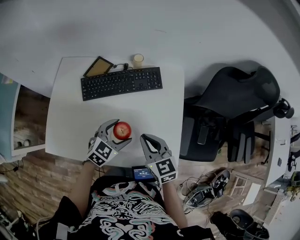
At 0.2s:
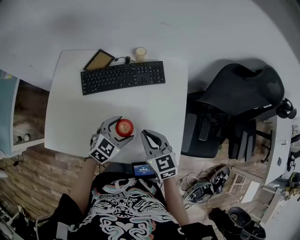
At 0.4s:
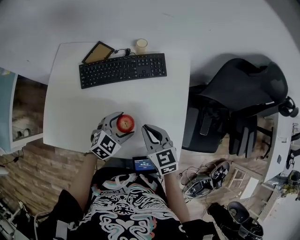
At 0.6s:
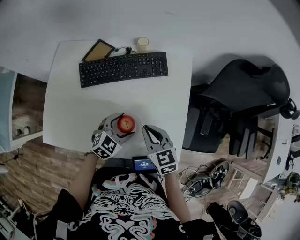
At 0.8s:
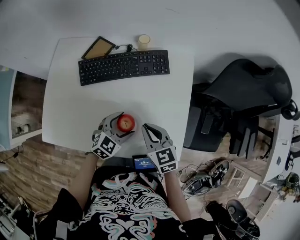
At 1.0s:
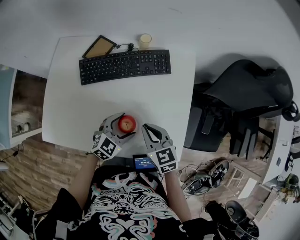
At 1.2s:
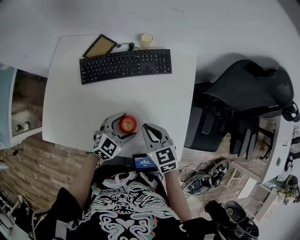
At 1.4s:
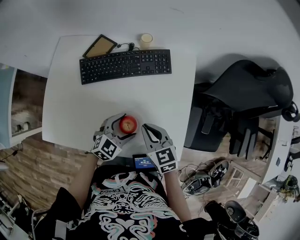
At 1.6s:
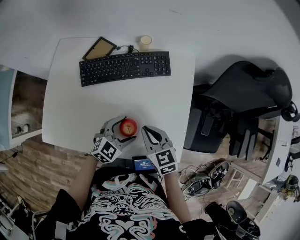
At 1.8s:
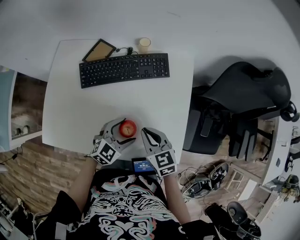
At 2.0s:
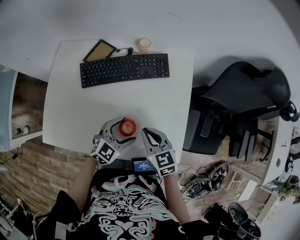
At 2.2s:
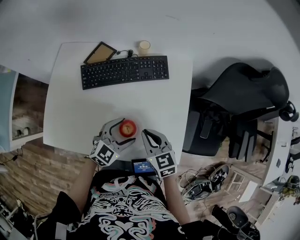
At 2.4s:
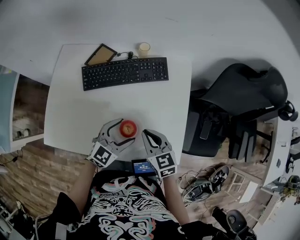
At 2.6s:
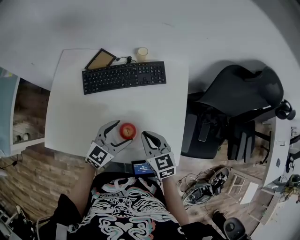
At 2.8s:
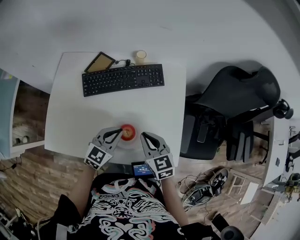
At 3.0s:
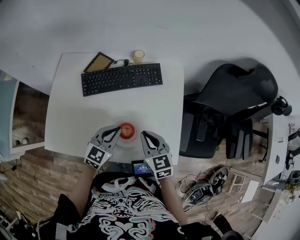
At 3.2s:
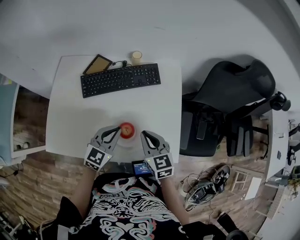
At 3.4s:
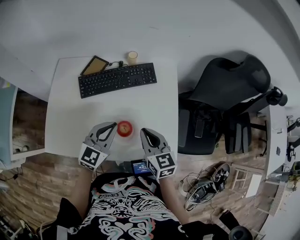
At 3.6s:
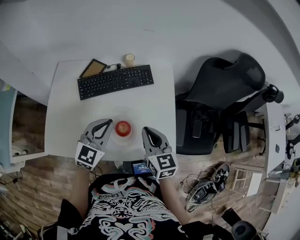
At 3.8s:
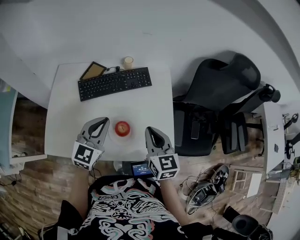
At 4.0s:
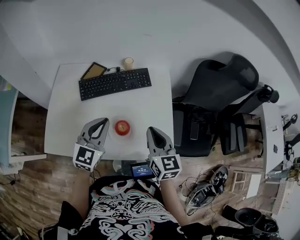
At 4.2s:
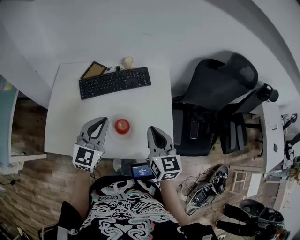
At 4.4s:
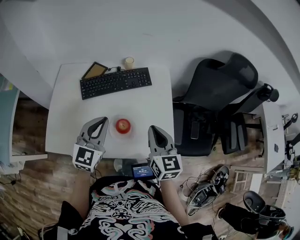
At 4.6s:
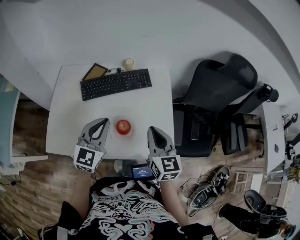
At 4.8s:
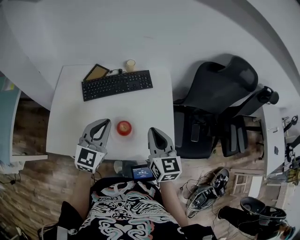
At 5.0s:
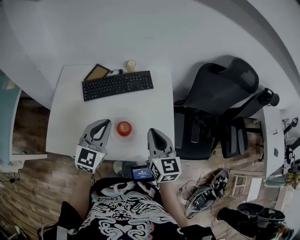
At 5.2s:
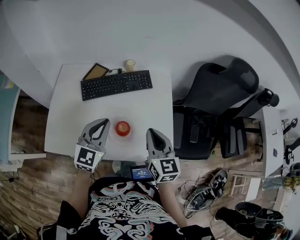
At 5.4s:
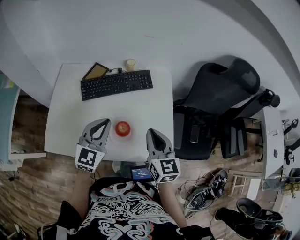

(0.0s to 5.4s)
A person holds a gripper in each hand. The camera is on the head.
0.0s - 1.4s: Both grippers travel together downward, roughly 5 cm.
1.4s - 2.8s: The left gripper goes about 5 cm upward, and closes up.
2.8s - 4.0s: The right gripper heads upward and to the right, covering some 10 cm, and rotates about 20 degrees; the left gripper goes roughly 15 cm upward.
4.0s - 5.4s: The grippers move only a little.

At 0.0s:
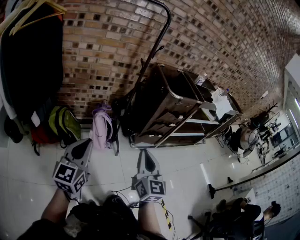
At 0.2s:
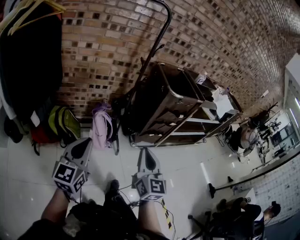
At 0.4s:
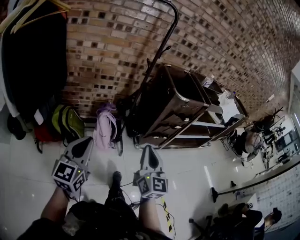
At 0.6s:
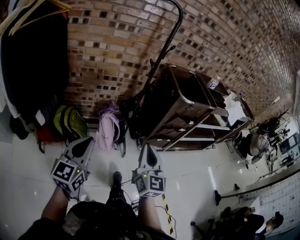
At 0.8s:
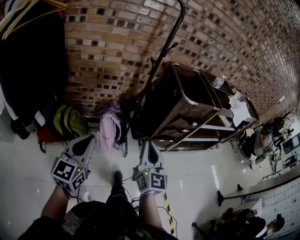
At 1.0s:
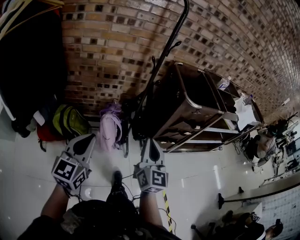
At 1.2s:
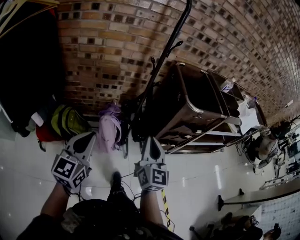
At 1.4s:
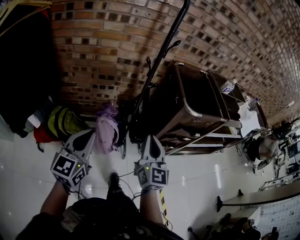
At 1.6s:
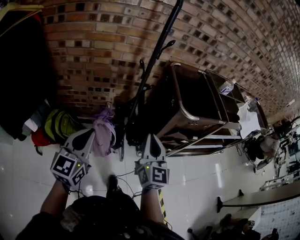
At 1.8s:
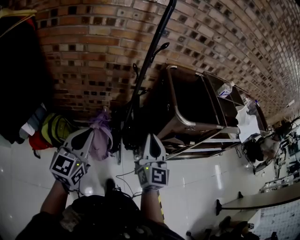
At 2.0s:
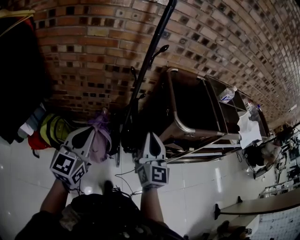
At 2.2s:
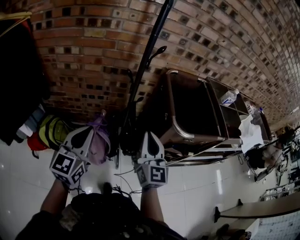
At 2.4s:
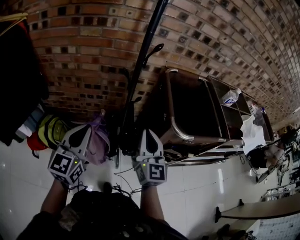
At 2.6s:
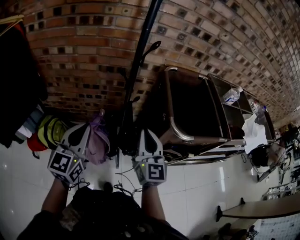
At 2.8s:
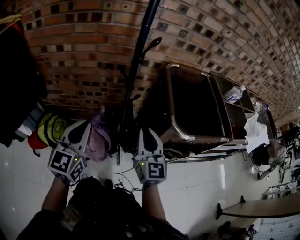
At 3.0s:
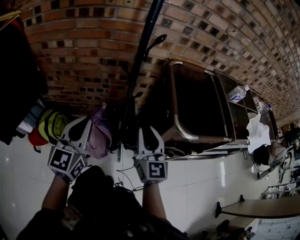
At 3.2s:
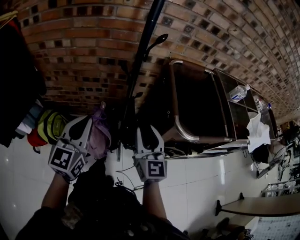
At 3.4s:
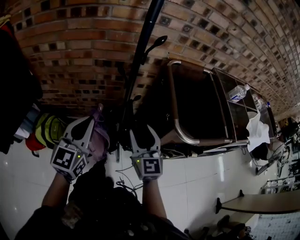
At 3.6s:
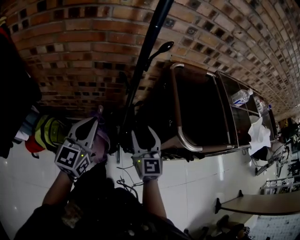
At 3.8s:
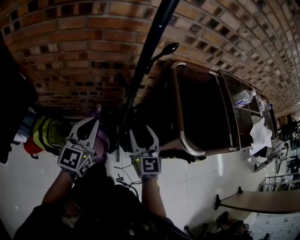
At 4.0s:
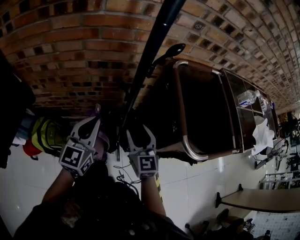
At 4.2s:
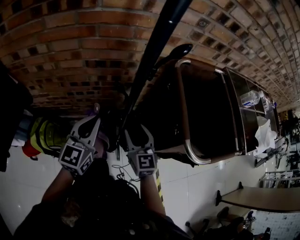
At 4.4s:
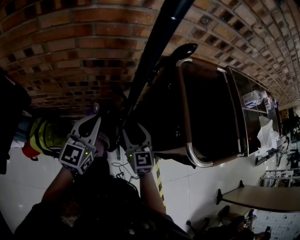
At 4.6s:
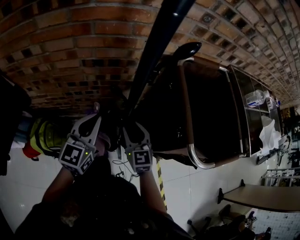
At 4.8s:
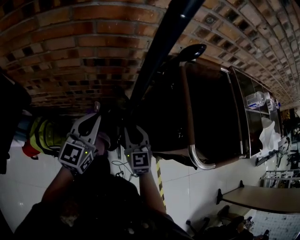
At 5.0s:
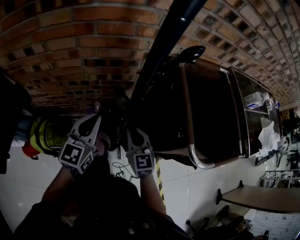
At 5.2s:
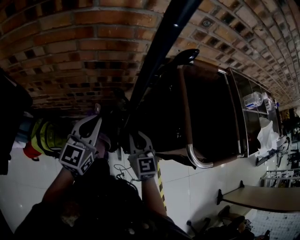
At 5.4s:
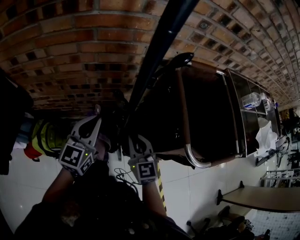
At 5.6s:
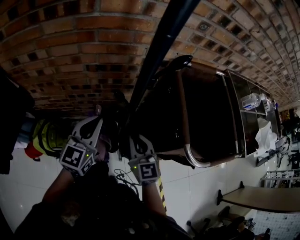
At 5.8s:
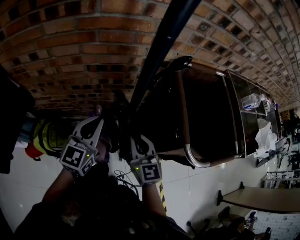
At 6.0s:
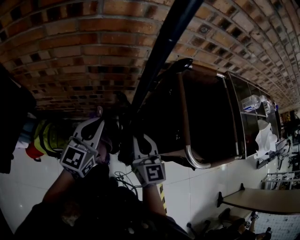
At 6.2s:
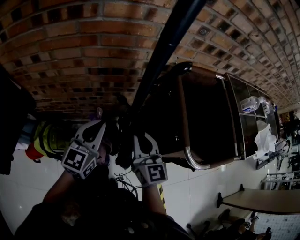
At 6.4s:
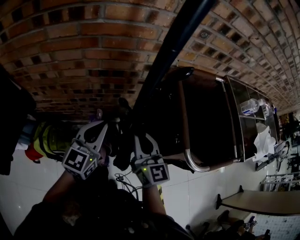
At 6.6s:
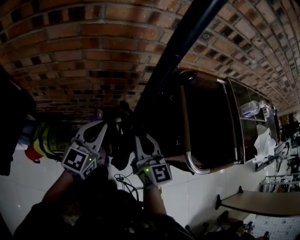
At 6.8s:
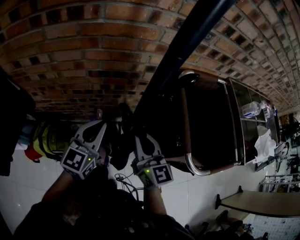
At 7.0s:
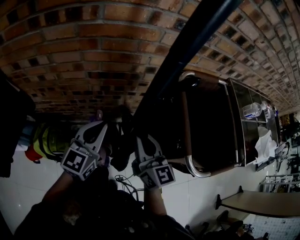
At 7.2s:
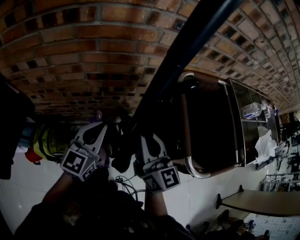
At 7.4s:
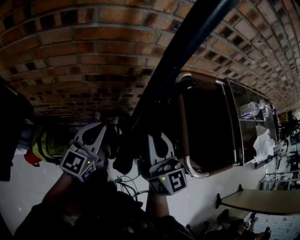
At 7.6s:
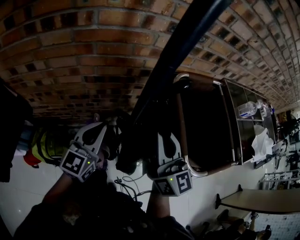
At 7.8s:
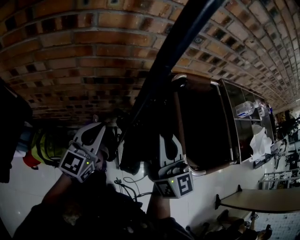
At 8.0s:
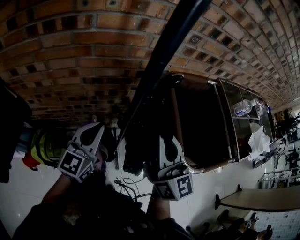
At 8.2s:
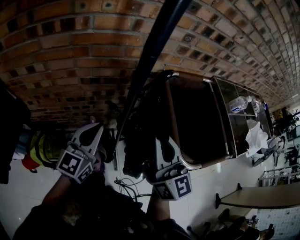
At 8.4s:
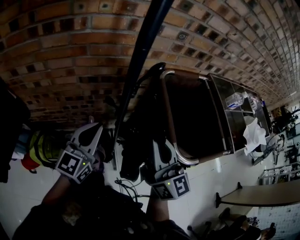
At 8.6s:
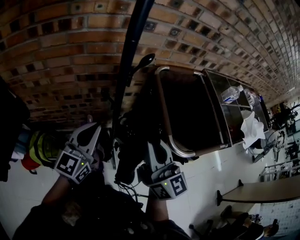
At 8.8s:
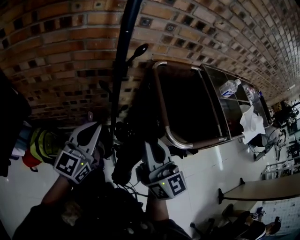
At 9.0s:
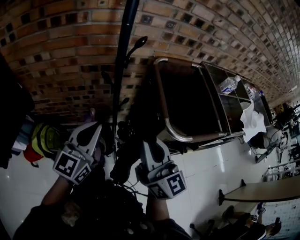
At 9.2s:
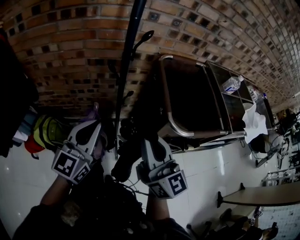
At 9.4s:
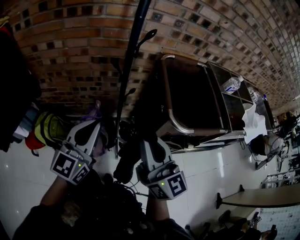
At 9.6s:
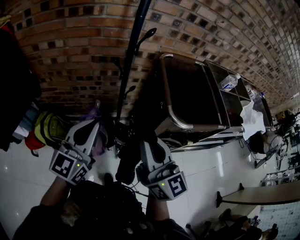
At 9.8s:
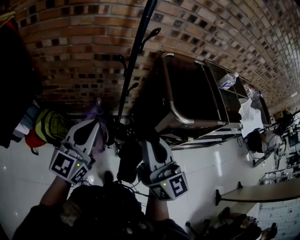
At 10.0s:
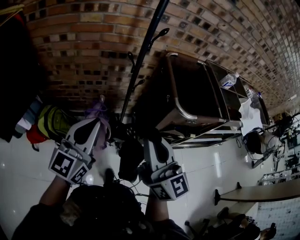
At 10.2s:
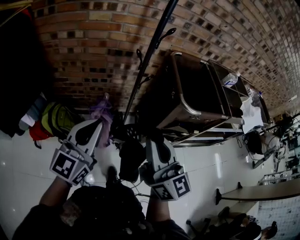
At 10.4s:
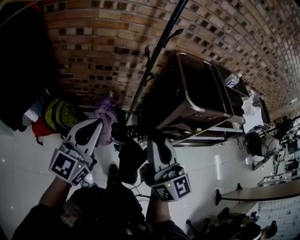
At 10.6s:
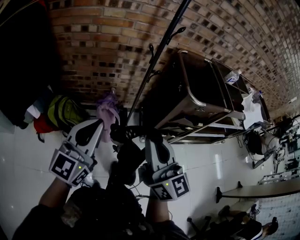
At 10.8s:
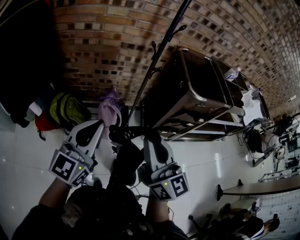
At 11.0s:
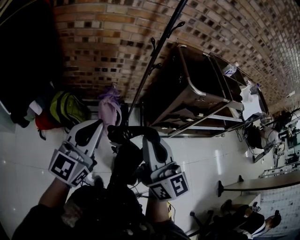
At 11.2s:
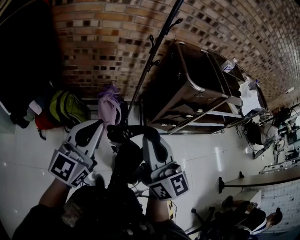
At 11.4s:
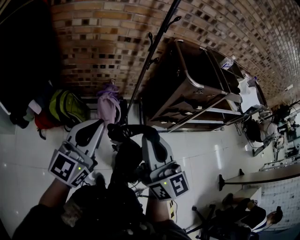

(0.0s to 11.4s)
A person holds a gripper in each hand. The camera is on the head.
0.0s - 1.4s: Both grippers travel together forward, approximately 30 cm.
1.4s - 2.8s: The right gripper shifts about 20 cm forward. Meanwhile the left gripper travels forward and to the right by some 20 cm.
2.8s - 4.2s: The grippers both shift forward and downward by about 20 cm. The right gripper opens up.
4.2s - 5.6s: The right gripper closes.
5.6s - 7.2s: The right gripper travels upward by some 10 cm, and turns by roughly 20 degrees.
7.2s - 8.6s: The left gripper travels backward and upward by roughly 10 cm; the right gripper goes some 15 cm backward, upward and to the right.
8.6s - 10.0s: Both grippers move backward, roughly 20 cm.
10.0s - 11.4s: Both grippers travel together backward and to the left, about 20 cm.

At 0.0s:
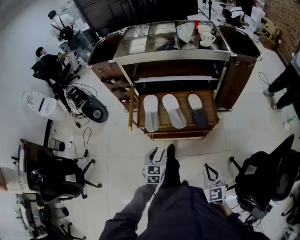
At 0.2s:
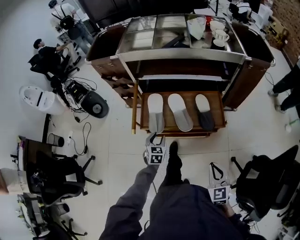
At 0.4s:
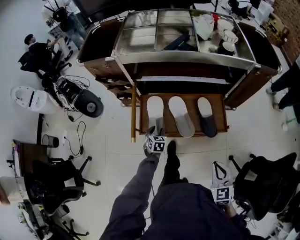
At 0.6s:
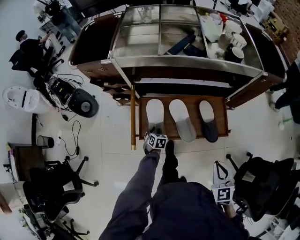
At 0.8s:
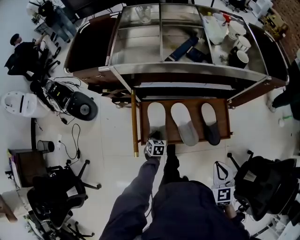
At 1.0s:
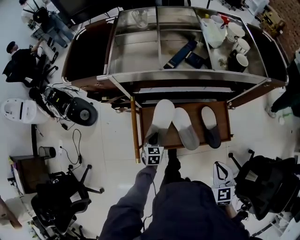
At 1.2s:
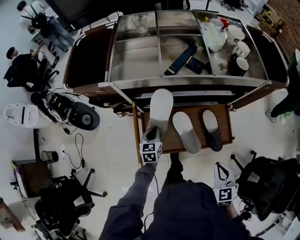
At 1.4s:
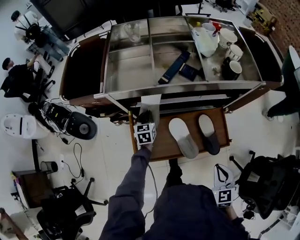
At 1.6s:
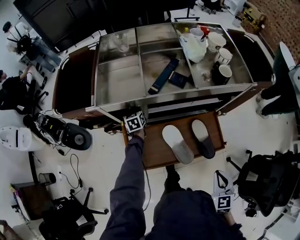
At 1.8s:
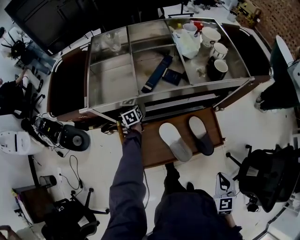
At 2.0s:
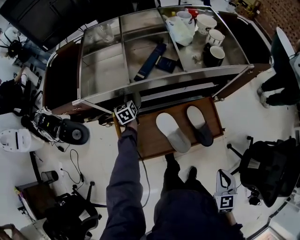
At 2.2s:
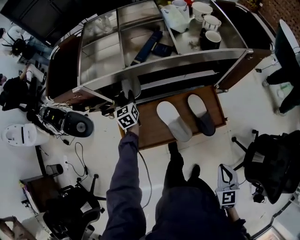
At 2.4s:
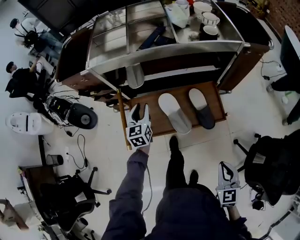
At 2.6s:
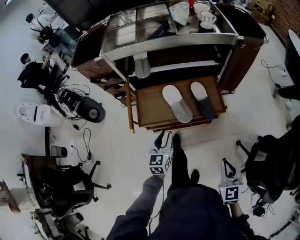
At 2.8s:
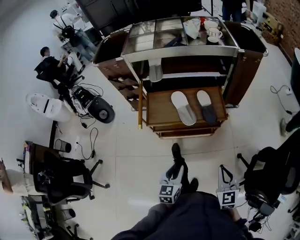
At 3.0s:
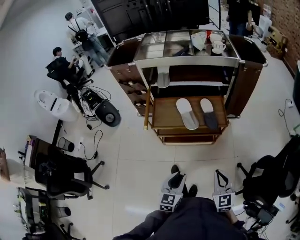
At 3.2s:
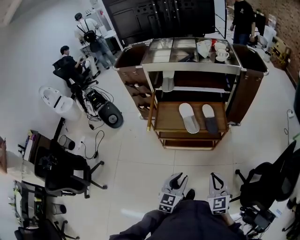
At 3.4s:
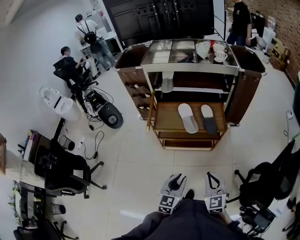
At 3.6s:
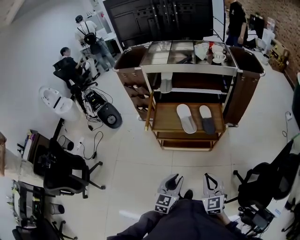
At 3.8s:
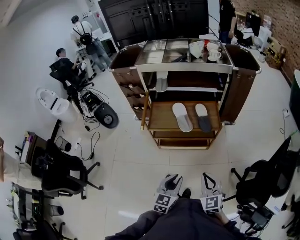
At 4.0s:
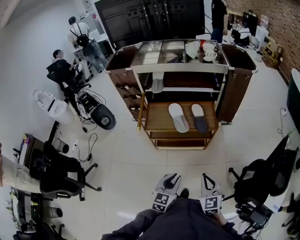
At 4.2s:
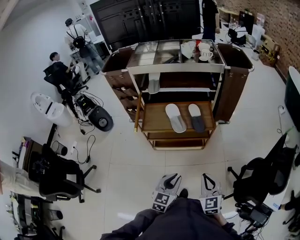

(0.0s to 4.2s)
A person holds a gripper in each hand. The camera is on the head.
0.0s - 1.4s: The left gripper is displaced forward by about 50 cm, and closes up. Meanwhile the right gripper shifts about 30 cm forward.
1.4s - 2.8s: The right gripper travels backward by some 30 cm, while the left gripper heads backward, covering approximately 60 cm, and opens its fingers.
2.8s - 4.2s: The right gripper moves backward, about 5 cm; the left gripper is displaced backward, to the right and upward by some 15 cm.

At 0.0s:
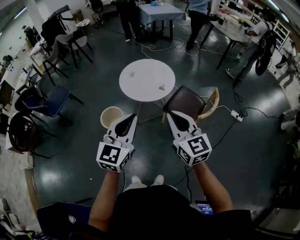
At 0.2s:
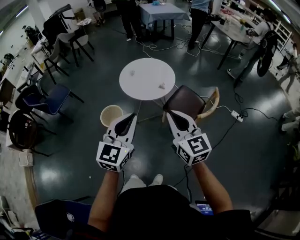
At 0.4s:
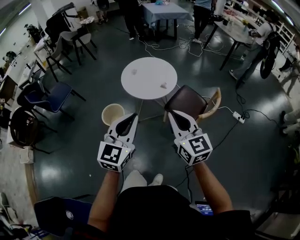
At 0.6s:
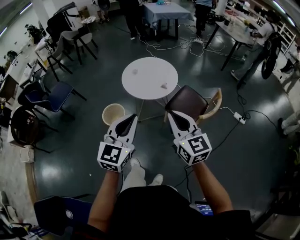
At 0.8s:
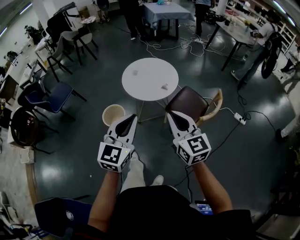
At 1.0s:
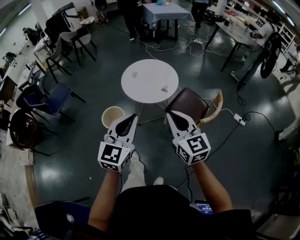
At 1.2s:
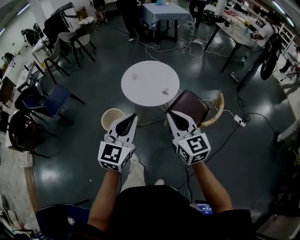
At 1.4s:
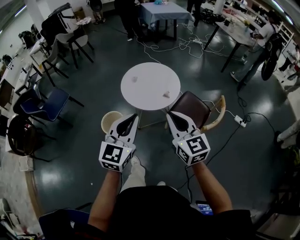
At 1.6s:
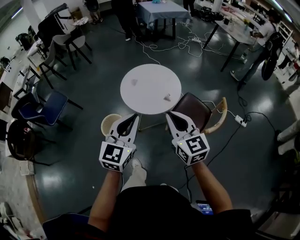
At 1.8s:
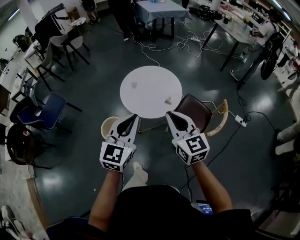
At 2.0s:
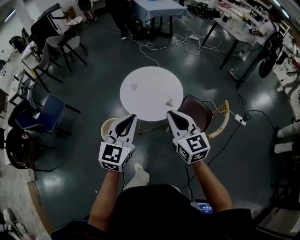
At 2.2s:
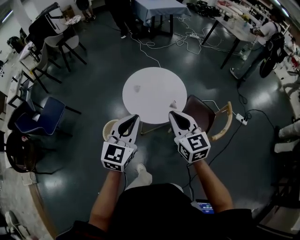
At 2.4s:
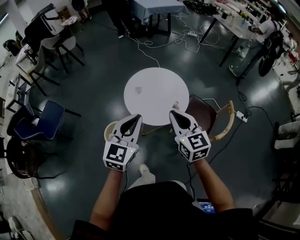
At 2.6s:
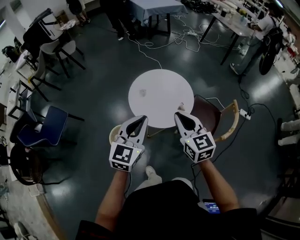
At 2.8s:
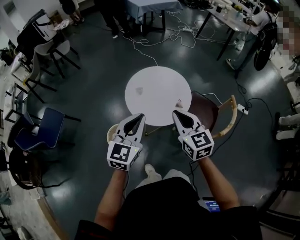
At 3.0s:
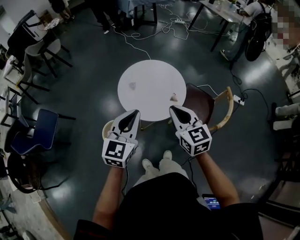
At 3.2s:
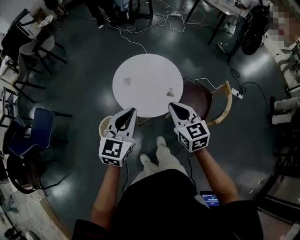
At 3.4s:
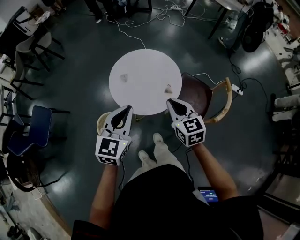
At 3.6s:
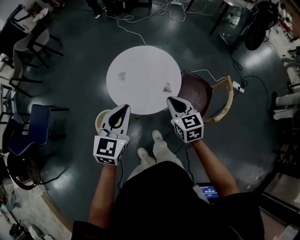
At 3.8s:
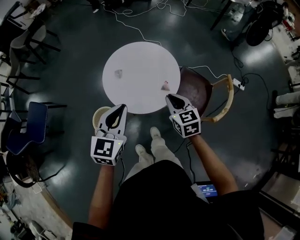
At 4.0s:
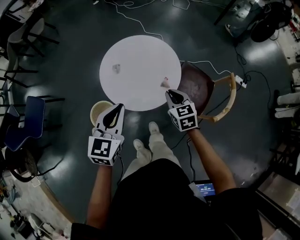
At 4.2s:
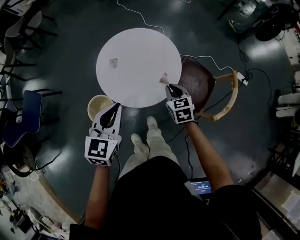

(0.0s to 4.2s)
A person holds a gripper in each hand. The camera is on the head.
0.0s - 1.4s: The two grippers go approximately 10 cm forward.
1.4s - 2.8s: Both grippers move forward and to the left, approximately 25 cm.
2.8s - 4.2s: The left gripper travels downward and forward by about 15 cm. The right gripper travels downward, forward and to the right by about 35 cm, and changes its angle by roughly 30 degrees.
